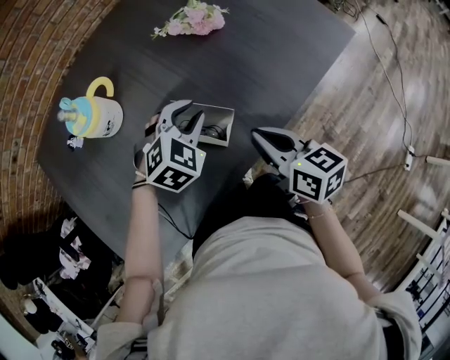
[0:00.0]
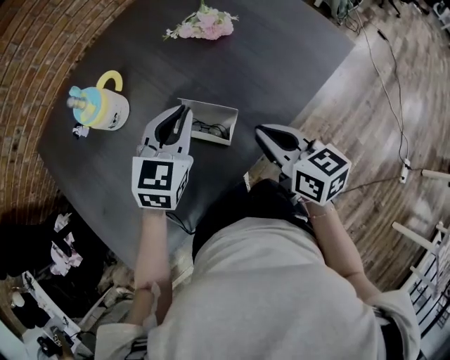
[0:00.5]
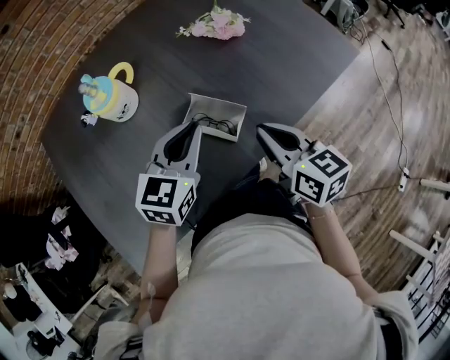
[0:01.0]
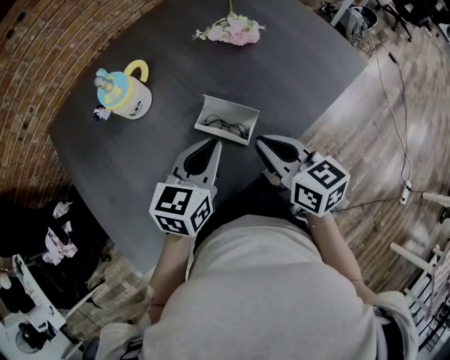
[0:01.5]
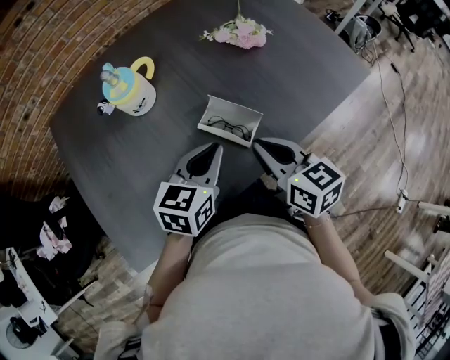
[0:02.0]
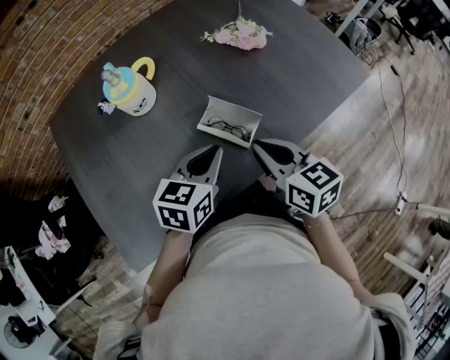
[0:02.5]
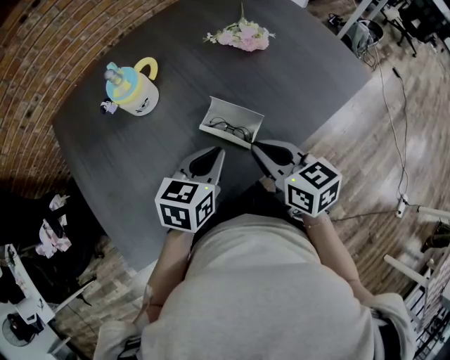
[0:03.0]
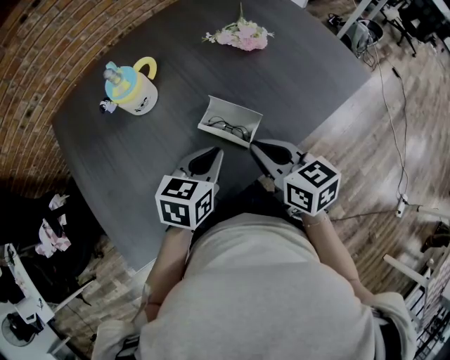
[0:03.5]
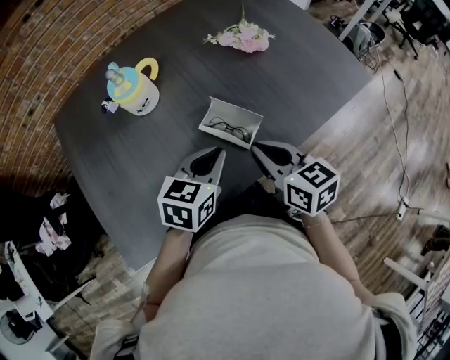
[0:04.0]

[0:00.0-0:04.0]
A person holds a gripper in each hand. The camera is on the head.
0:00.0 to 0:02.0: The right gripper heads to the left, covering about 5 cm; the left gripper heads backward, to the left and upward, covering roughly 15 cm, and rotates around the line of its fingers by about 50 degrees, counterclockwise from behind.
0:02.0 to 0:04.0: There are only small adjustments of the grippers.

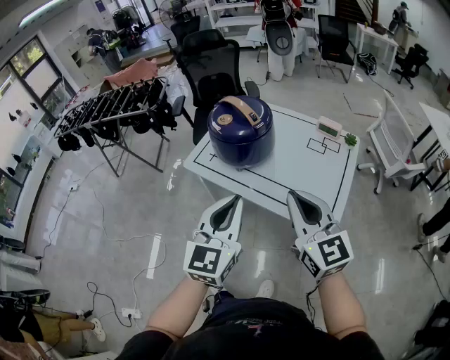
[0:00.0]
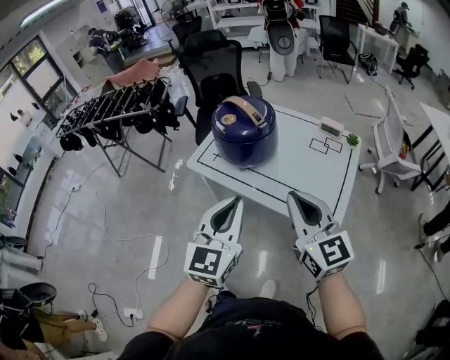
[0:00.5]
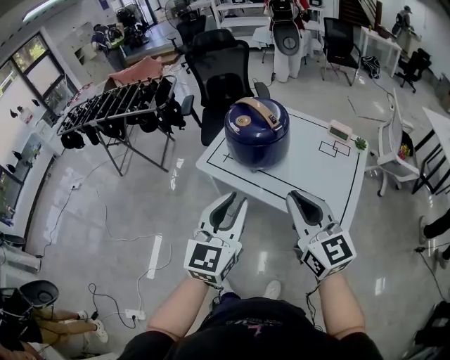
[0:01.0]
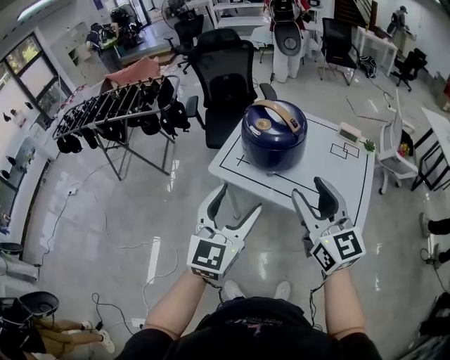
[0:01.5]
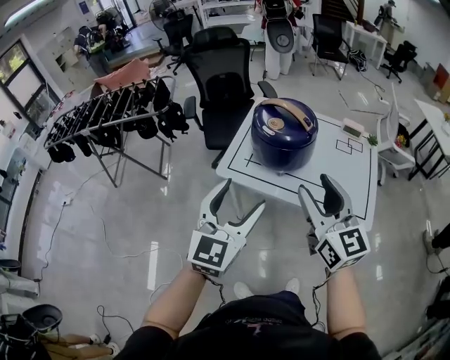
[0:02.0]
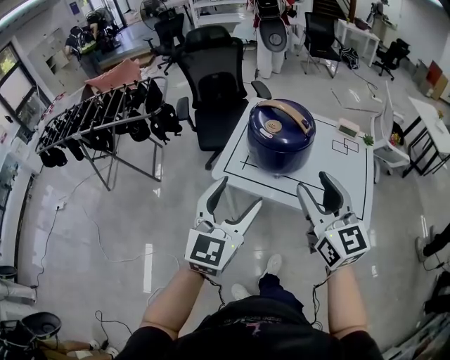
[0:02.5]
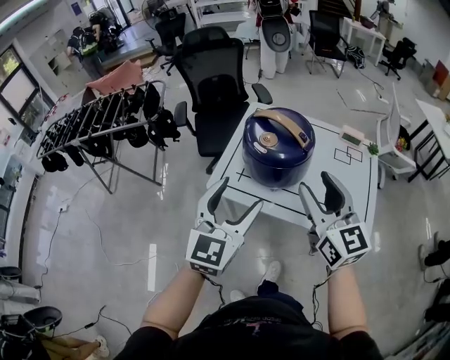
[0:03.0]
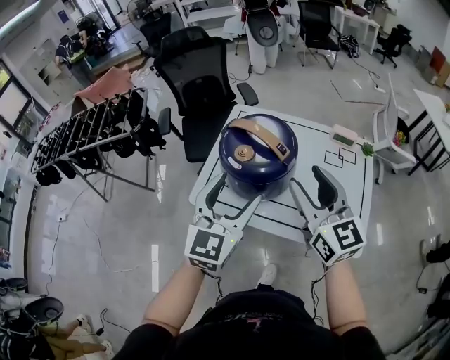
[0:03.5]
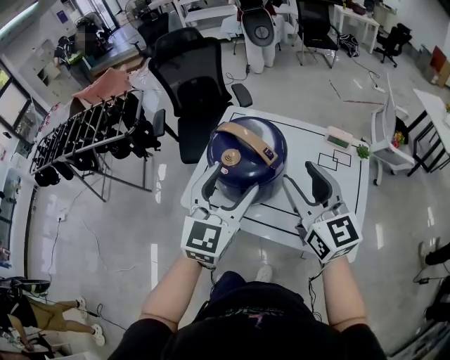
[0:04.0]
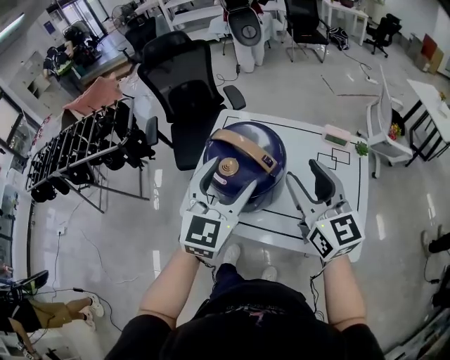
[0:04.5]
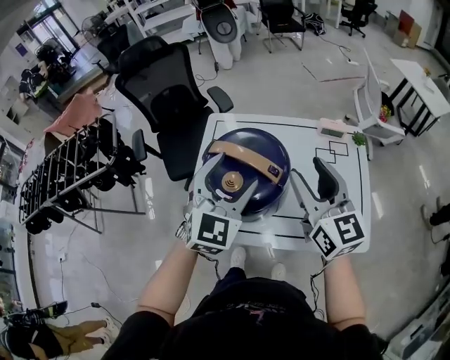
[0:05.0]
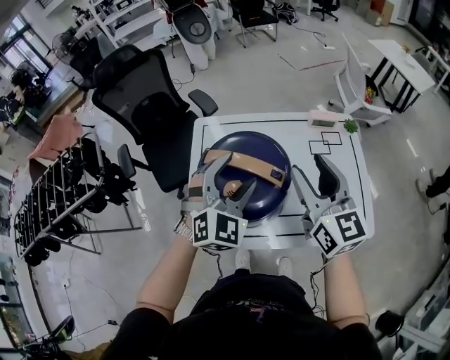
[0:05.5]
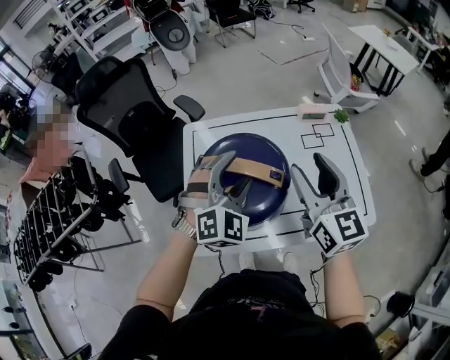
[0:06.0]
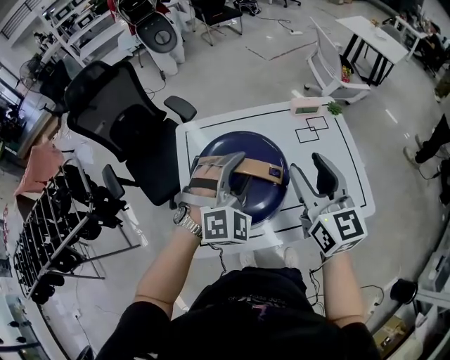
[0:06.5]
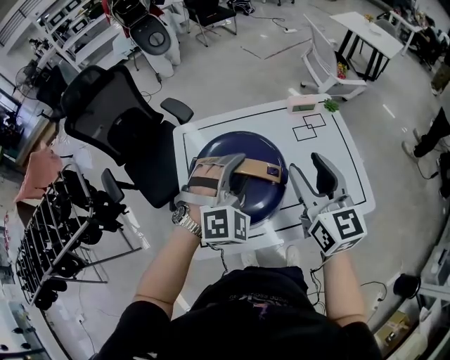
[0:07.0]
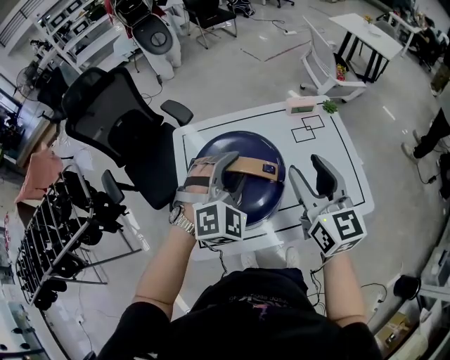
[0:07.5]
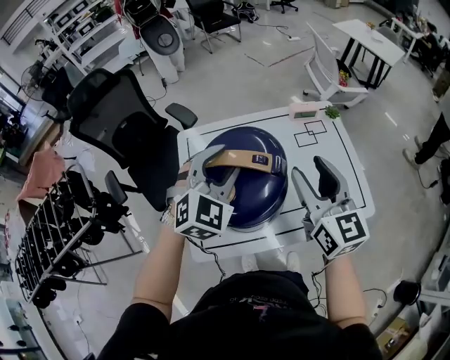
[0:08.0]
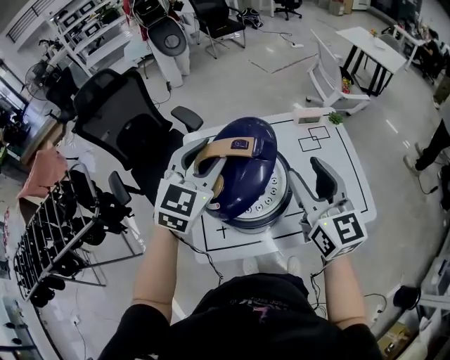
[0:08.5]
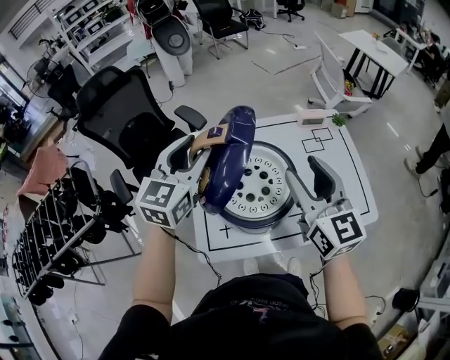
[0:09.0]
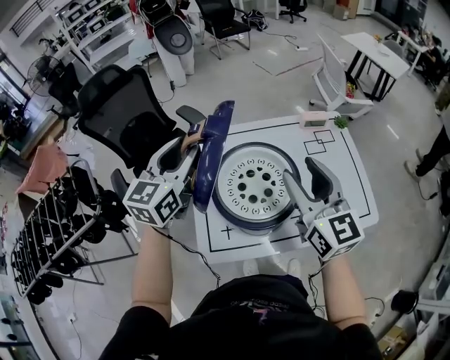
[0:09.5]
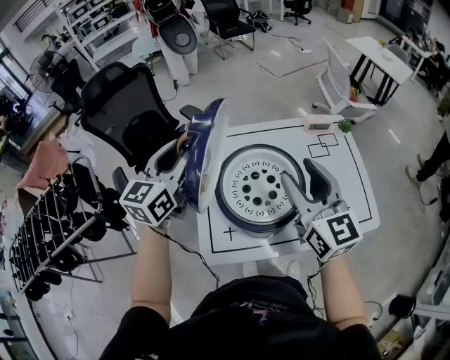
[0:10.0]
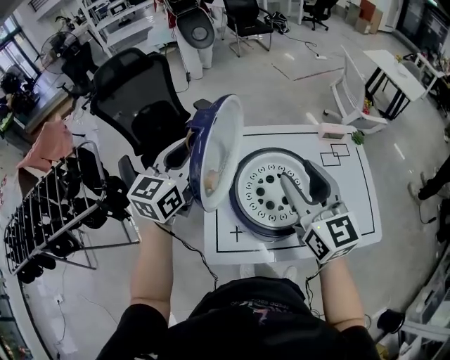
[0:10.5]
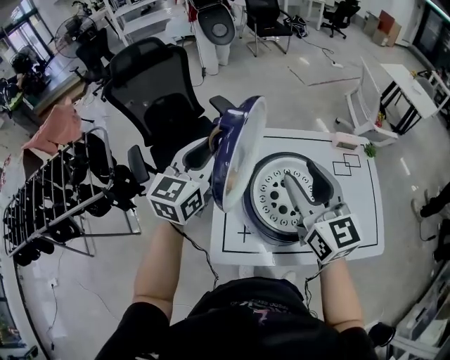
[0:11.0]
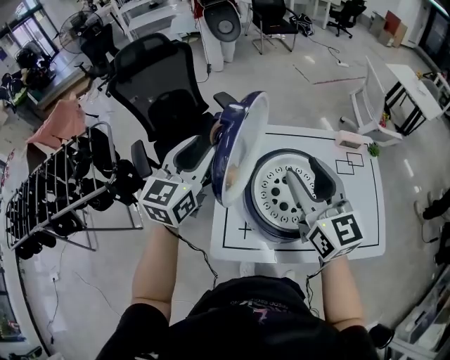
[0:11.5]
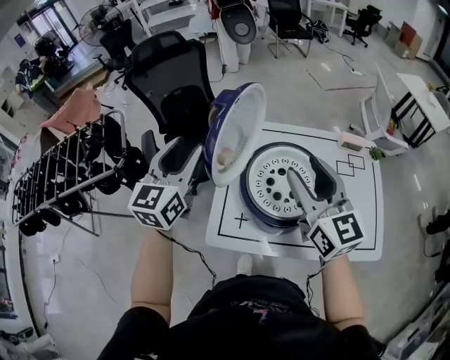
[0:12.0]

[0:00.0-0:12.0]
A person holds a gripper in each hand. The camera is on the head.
0:00.0 to 0:02.0: The two grippers go approximately 20 cm to the left. The right gripper opens, while the left gripper opens.
0:02.0 to 0:04.0: The grippers both shift forward and to the right by roughly 25 cm.
0:04.0 to 0:06.0: The right gripper moves roughly 10 cm, and turns by some 30 degrees. The left gripper changes place by some 20 cm, and rotates around the line of its fingers by some 50 degrees, clockwise from behind.
0:06.0 to 0:08.0: The grippers move only a little.
0:08.0 to 0:10.0: The right gripper shifts about 10 cm to the left, while the left gripper is displaced to the left by approximately 20 cm, and twists some 50 degrees counterclockwise, seen from behind.
0:10.0 to 0:12.0: The right gripper heads to the left, covering about 5 cm. Meanwhile the left gripper travels backward and to the left by some 10 cm, and changes its angle by roughly 20 degrees.

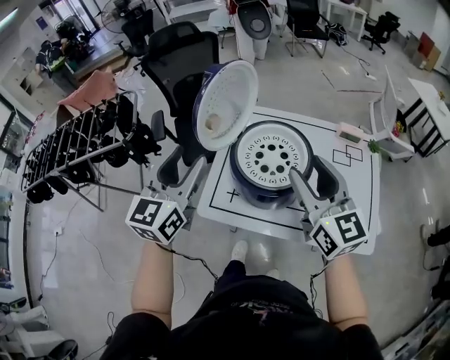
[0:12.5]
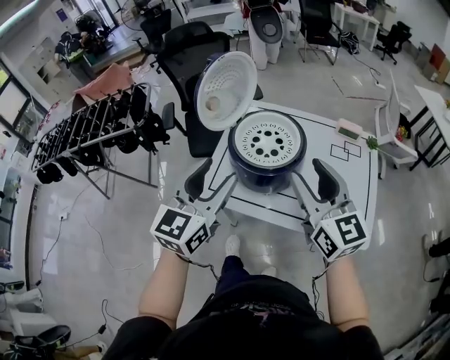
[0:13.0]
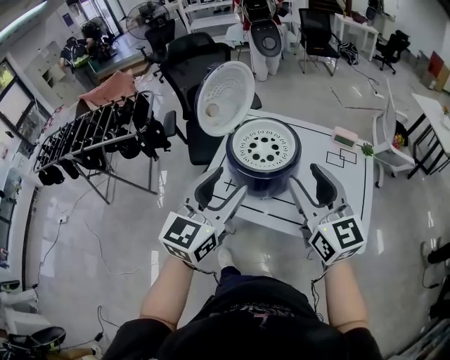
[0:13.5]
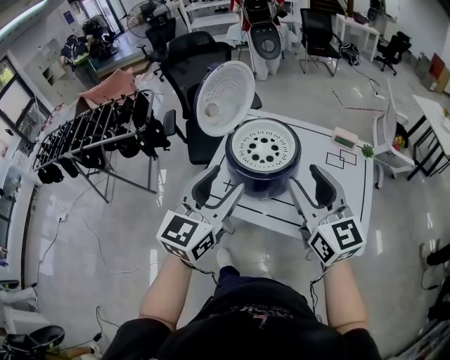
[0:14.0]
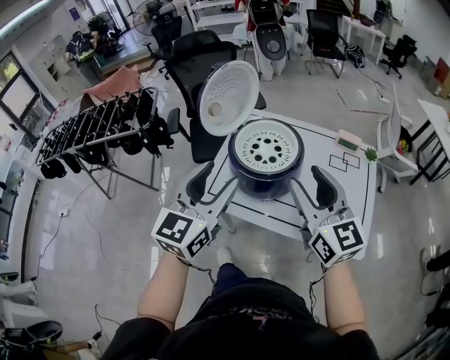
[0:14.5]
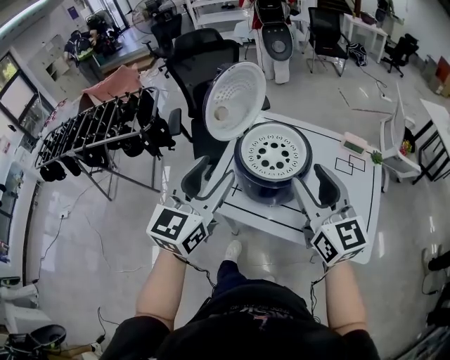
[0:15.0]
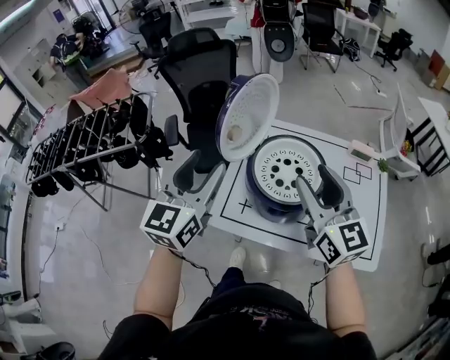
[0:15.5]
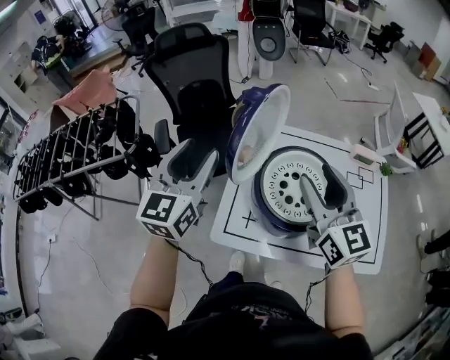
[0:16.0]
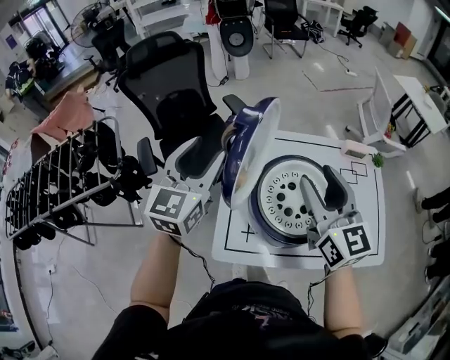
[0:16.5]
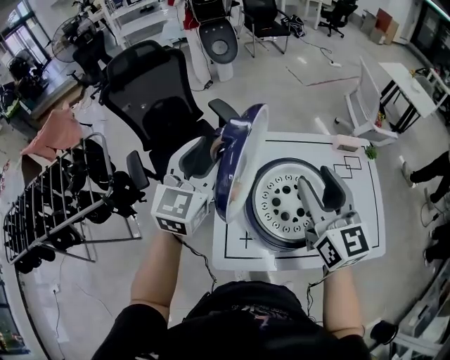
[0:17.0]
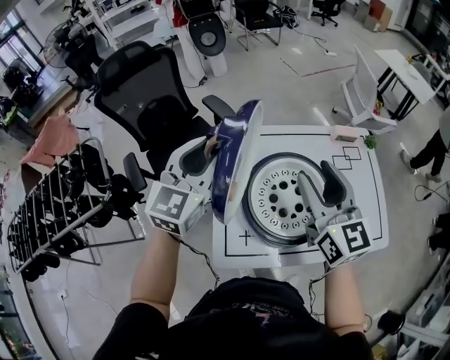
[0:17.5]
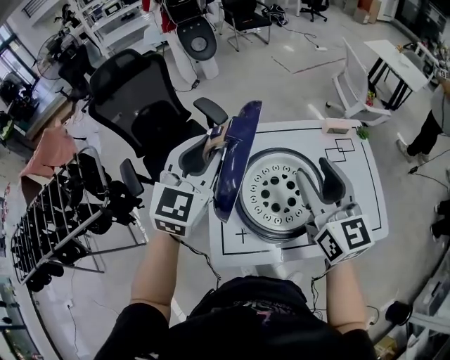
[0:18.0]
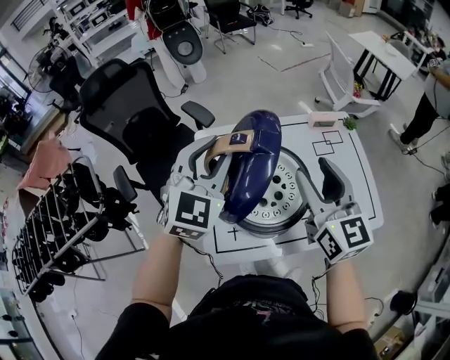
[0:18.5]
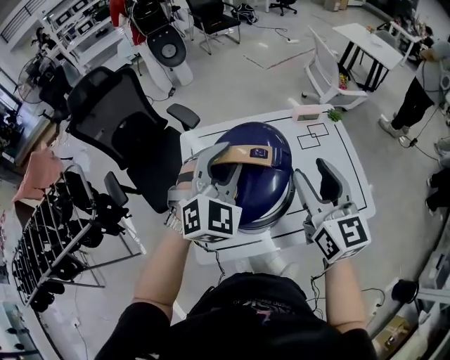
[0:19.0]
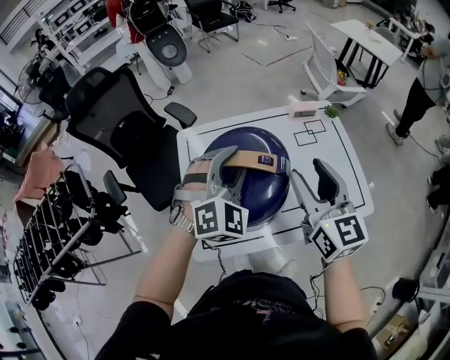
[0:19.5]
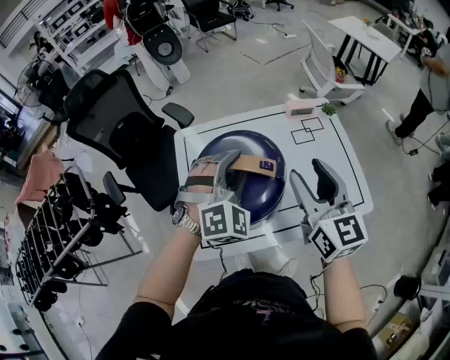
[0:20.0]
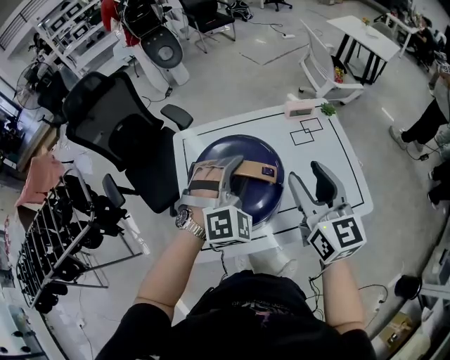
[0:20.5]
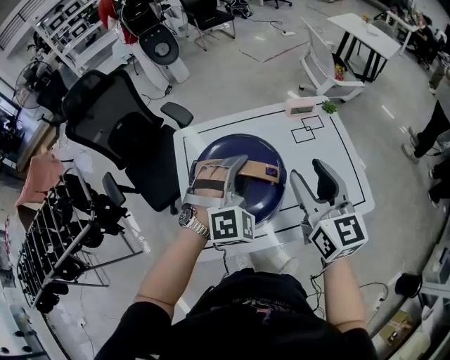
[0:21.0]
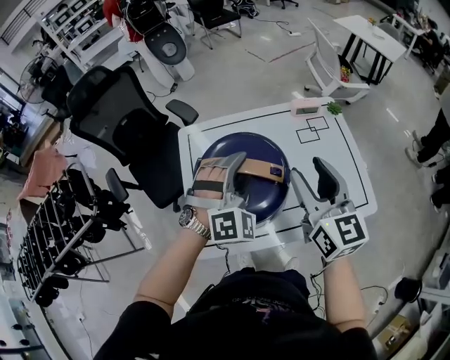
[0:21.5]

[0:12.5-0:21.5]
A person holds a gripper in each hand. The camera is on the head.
0:12.5 to 0:14.5: The right gripper heads backward, covering about 10 cm. Meanwhile the left gripper travels backward and to the right by roughly 15 cm.
0:14.5 to 0:17.0: The left gripper travels forward by about 35 cm. Meanwhile the right gripper heads forward and to the left, covering roughly 25 cm, and turns by about 30 degrees.
0:17.0 to 0:19.5: The right gripper shifts approximately 15 cm to the right, while the left gripper heads to the right, covering some 25 cm, and twists some 50 degrees clockwise, seen from behind.
0:19.5 to 0:21.5: The grippers make only small movements.

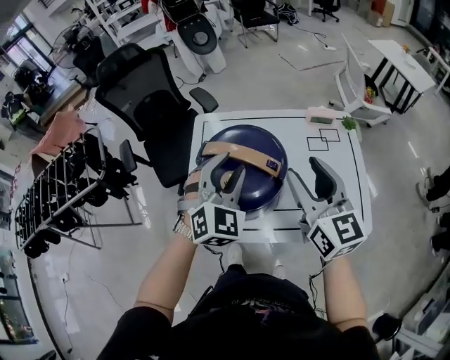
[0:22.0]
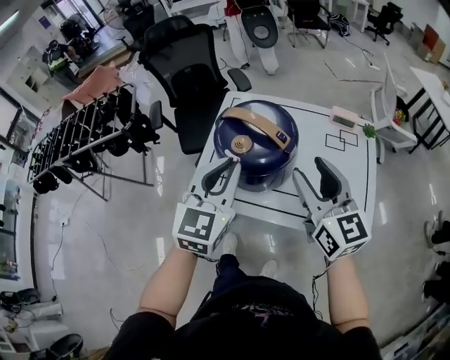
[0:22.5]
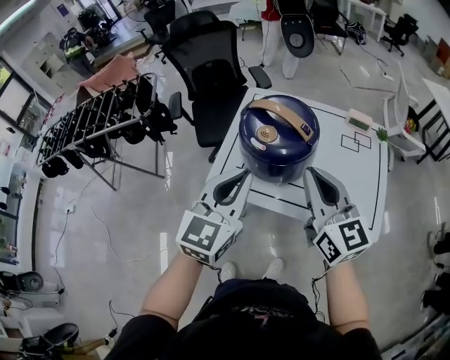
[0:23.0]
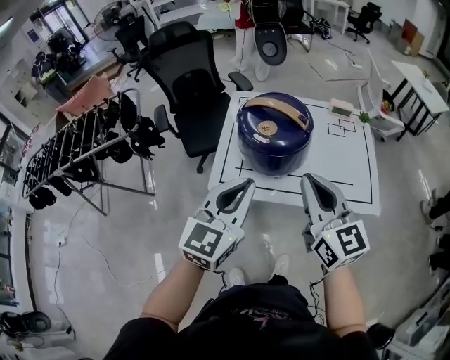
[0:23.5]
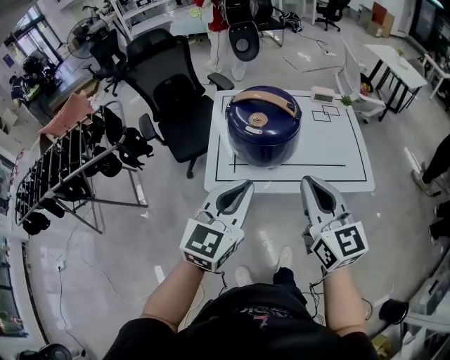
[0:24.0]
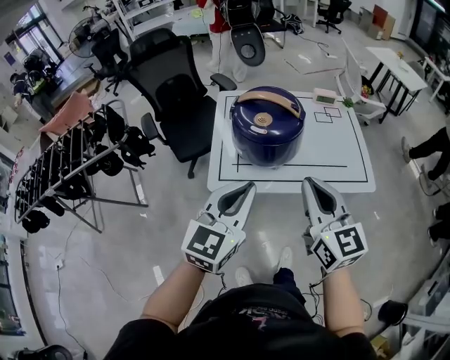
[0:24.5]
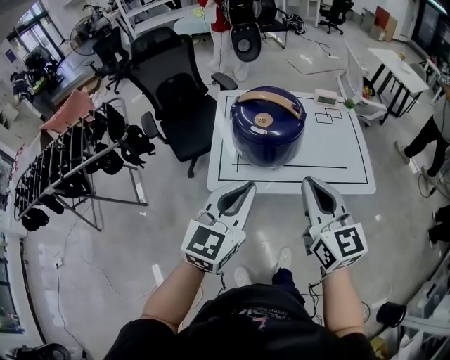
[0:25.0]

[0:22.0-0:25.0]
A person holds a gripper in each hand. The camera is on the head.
0:22.0 to 0:23.5: The right gripper moves backward and to the left, roughly 20 cm, and closes. Meanwhile the left gripper shifts roughly 25 cm backward, turns by roughly 40 degrees, and closes up.
0:23.5 to 0:25.0: The right gripper shifts by roughly 5 cm.
